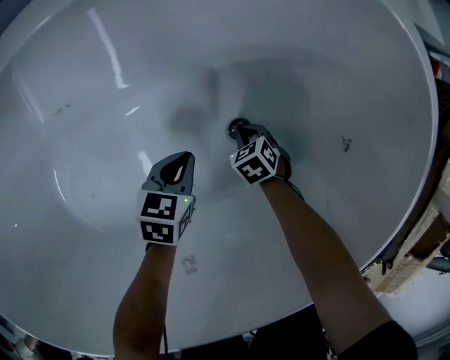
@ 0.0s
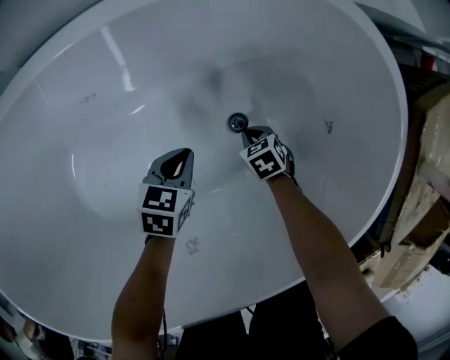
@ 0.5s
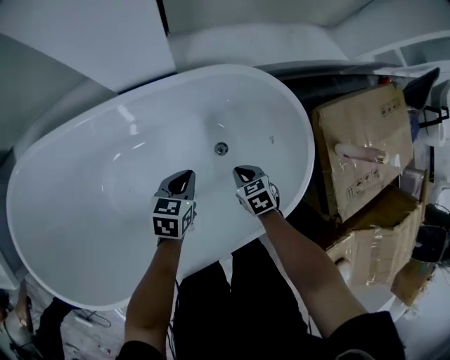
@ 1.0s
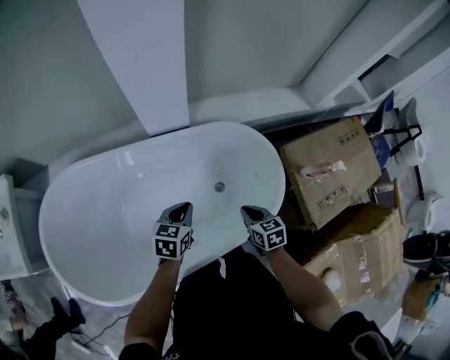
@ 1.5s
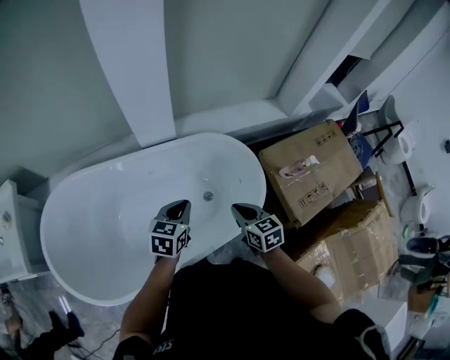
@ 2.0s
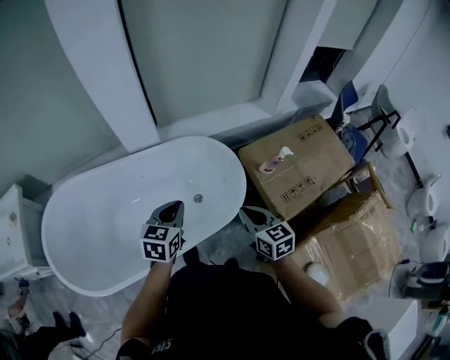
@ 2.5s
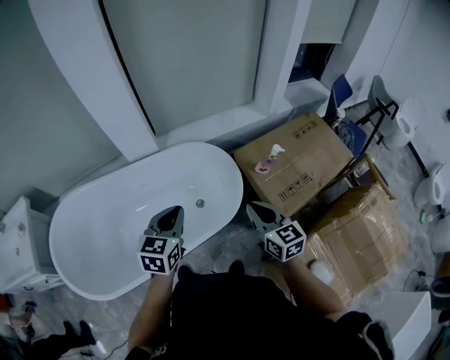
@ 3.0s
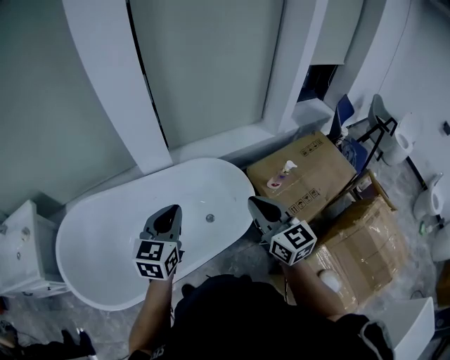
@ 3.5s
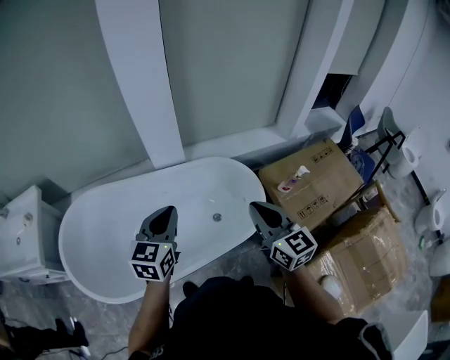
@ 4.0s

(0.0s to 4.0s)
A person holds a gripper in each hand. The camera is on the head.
0.0s - 2.0s: The grippers both shift upward by approximately 70 cm. The right gripper tilts its fingers approximately 40 degrees upward. Meanwhile the left gripper swivels about 30 degrees.
2.0s - 4.0s: Both grippers move upward and backward, approximately 25 cm. The right gripper turns by about 30 degrees; the left gripper rotates roughly 20 degrees.

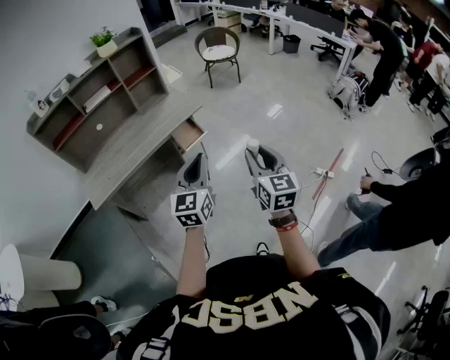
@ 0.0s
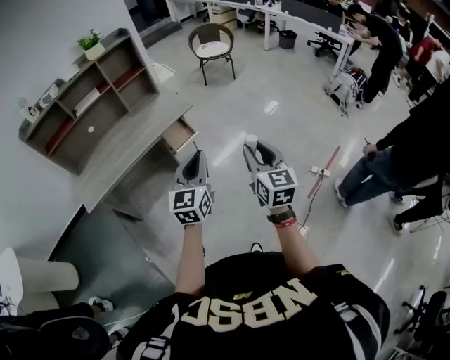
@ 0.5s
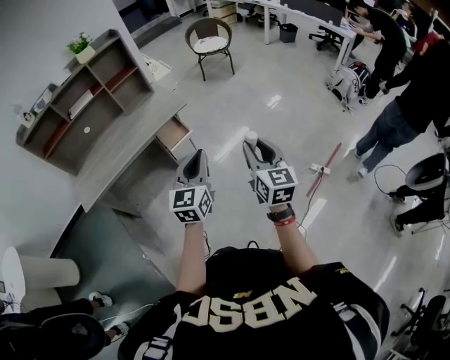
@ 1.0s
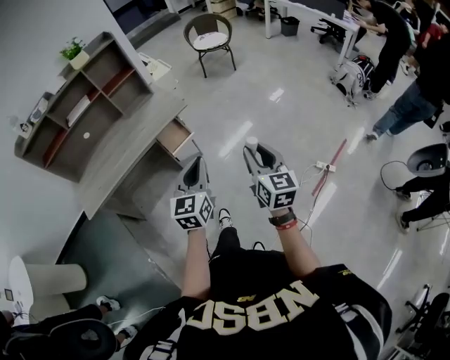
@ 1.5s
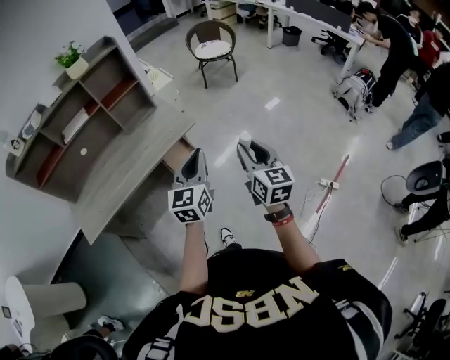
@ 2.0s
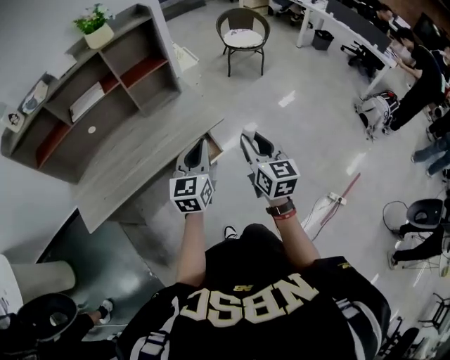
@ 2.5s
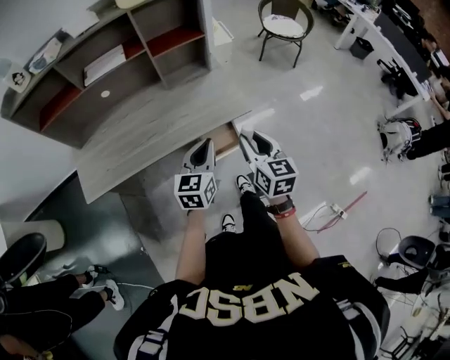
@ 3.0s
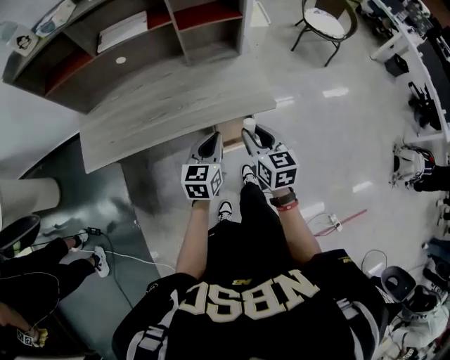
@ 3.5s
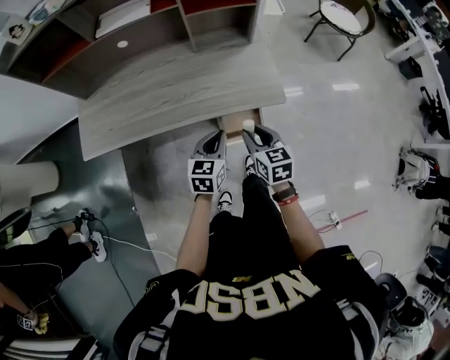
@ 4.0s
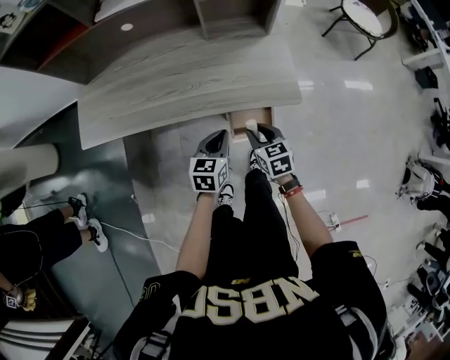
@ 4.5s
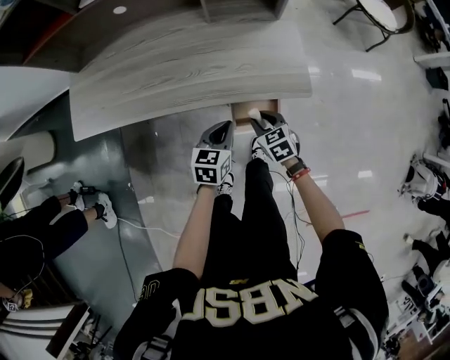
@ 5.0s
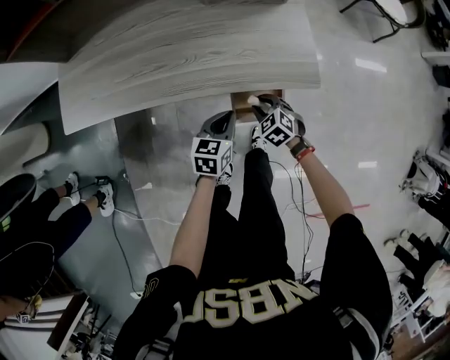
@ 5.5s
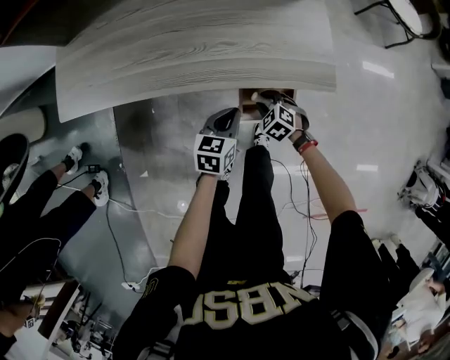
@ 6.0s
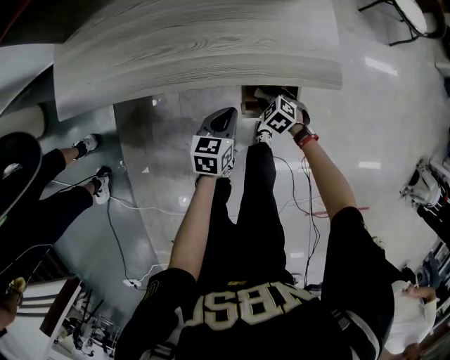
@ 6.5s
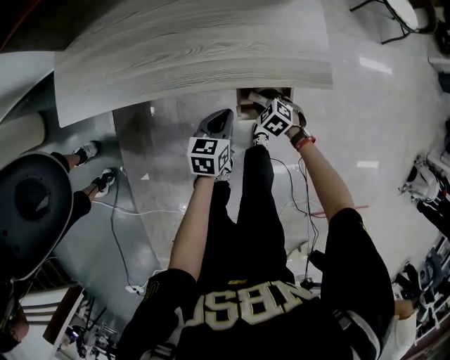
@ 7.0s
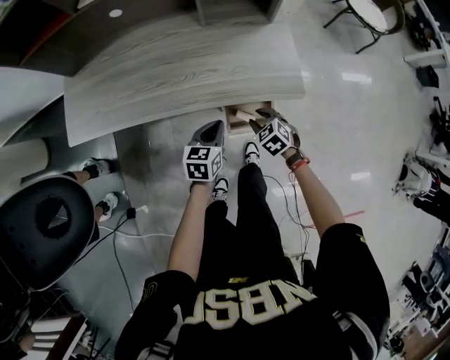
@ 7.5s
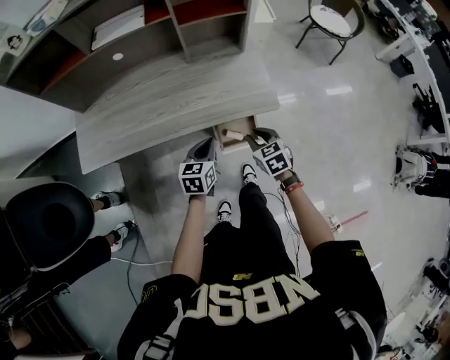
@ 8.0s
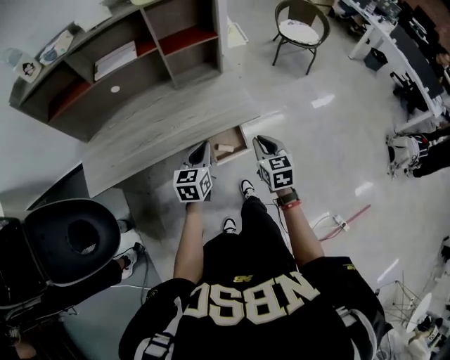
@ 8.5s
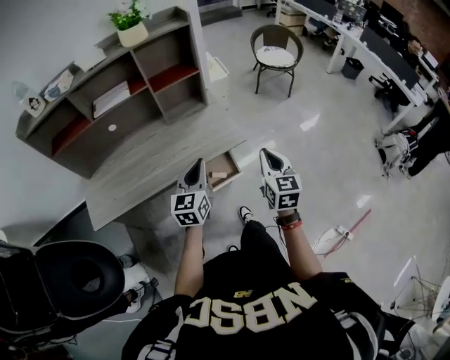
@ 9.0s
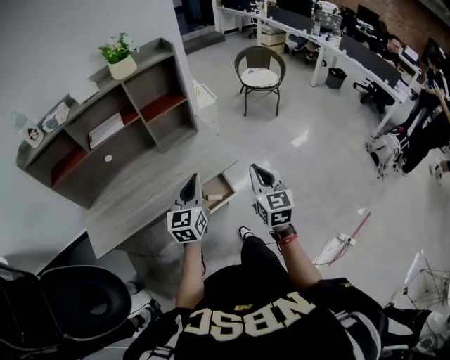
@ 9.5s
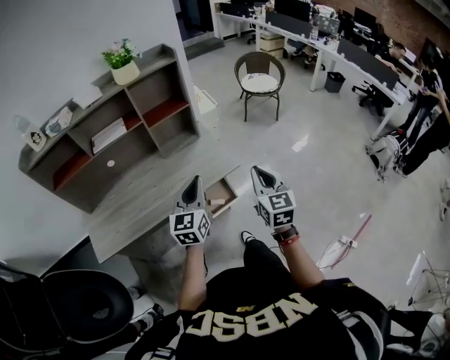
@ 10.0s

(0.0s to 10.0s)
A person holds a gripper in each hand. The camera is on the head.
0.0s - 2.0s: The two grippers go some 25 cm forward.
2.0s - 4.0s: The left gripper moves some 35 cm, and changes its angle by roughly 40 degrees. The right gripper shifts by roughly 40 cm, and turns by roughly 50 degrees.
4.0s - 6.0s: The right gripper is displaced downward by about 30 cm, and twists approximately 50 degrees counterclockwise, seen from behind; the left gripper moves downward, approximately 20 cm.
6.0s - 8.0s: The left gripper is displaced upward by some 15 cm; the right gripper shifts roughly 25 cm upward, and turns by about 40 degrees.
8.0s - 10.0s: Both grippers travel together upward, some 25 cm. The left gripper turns by some 30 degrees. Meanwhile the right gripper angles its fingers upward, by about 40 degrees, and closes.

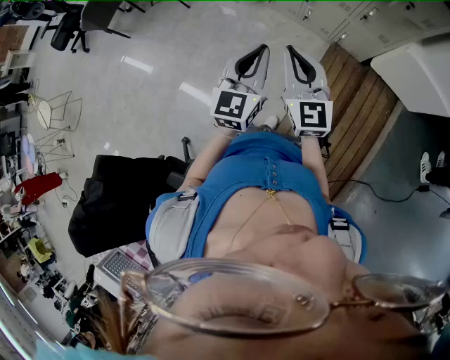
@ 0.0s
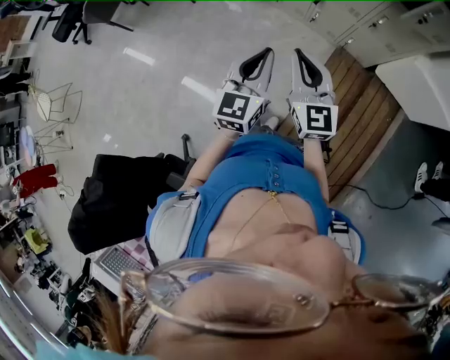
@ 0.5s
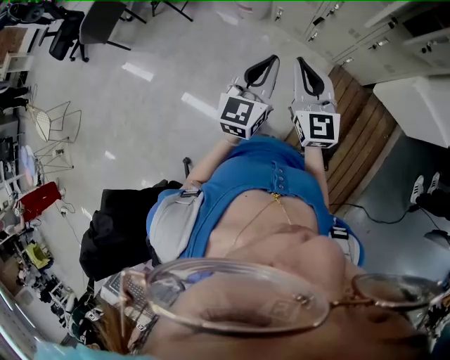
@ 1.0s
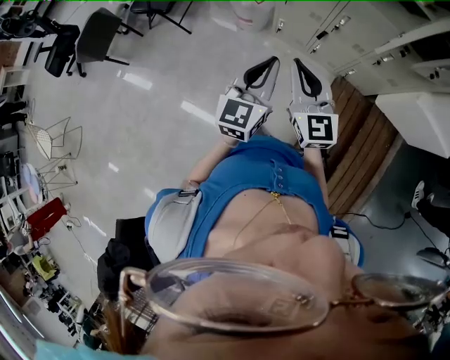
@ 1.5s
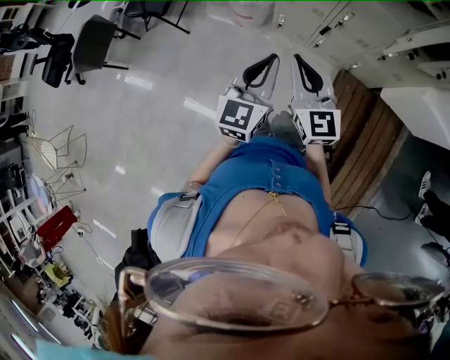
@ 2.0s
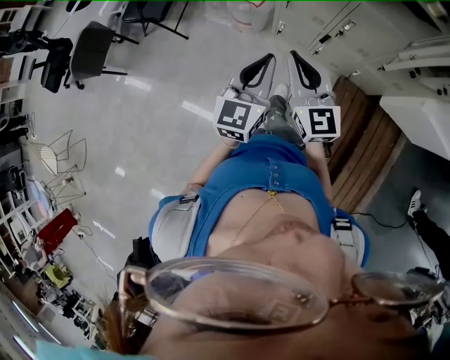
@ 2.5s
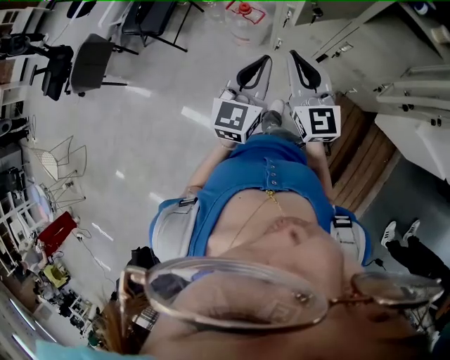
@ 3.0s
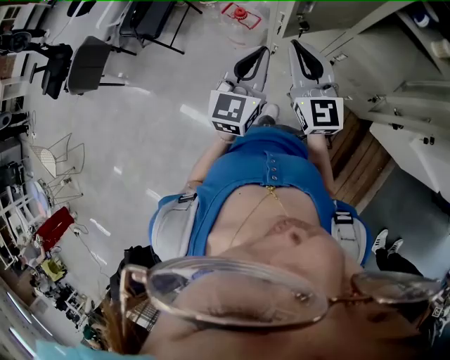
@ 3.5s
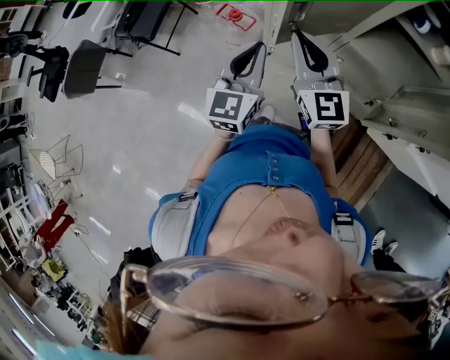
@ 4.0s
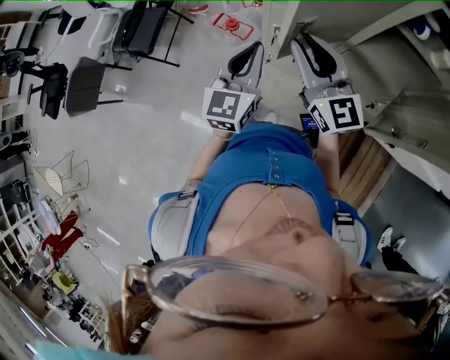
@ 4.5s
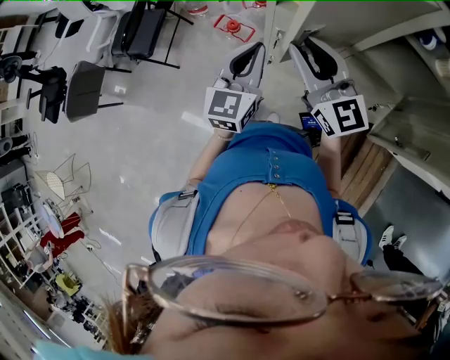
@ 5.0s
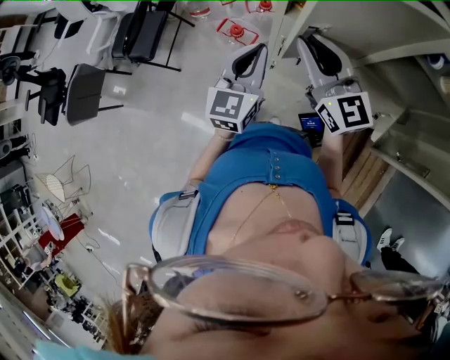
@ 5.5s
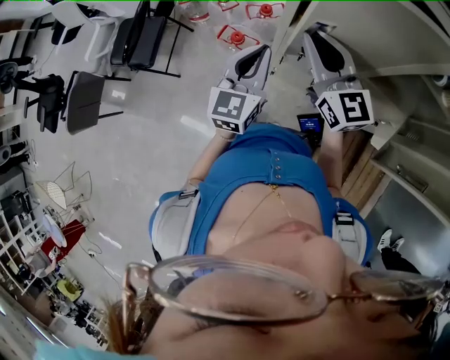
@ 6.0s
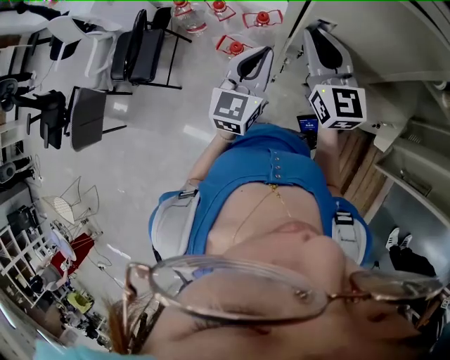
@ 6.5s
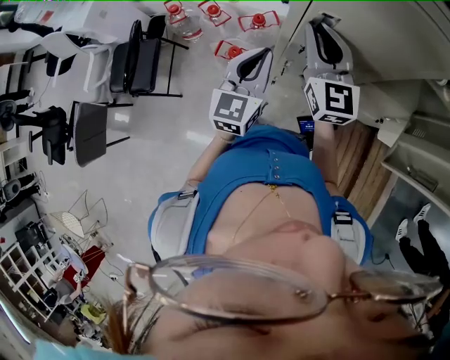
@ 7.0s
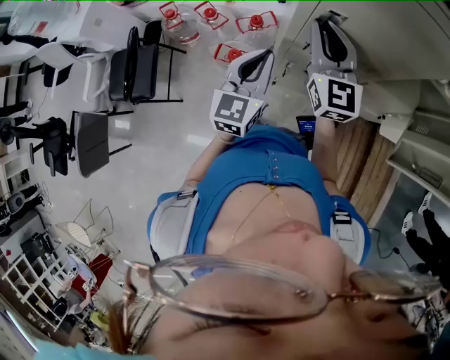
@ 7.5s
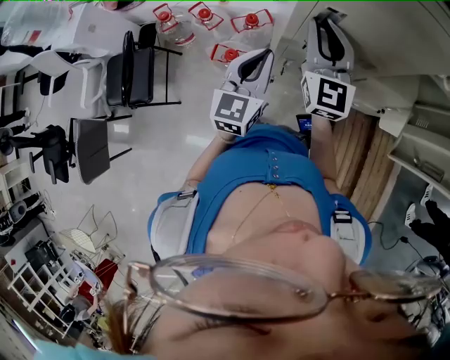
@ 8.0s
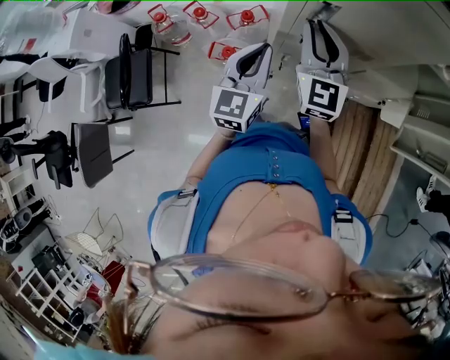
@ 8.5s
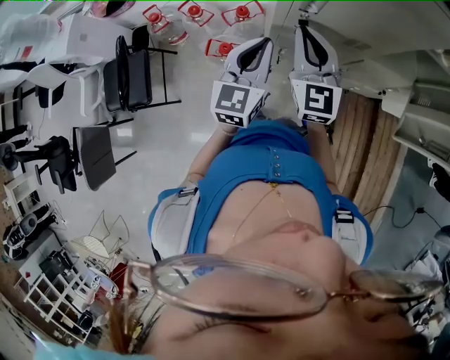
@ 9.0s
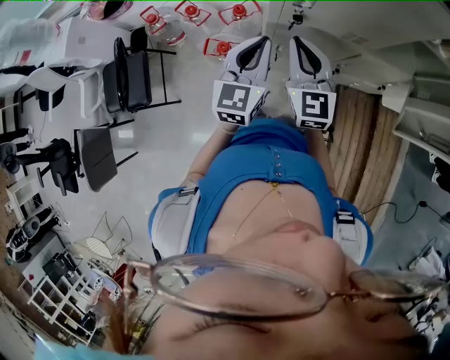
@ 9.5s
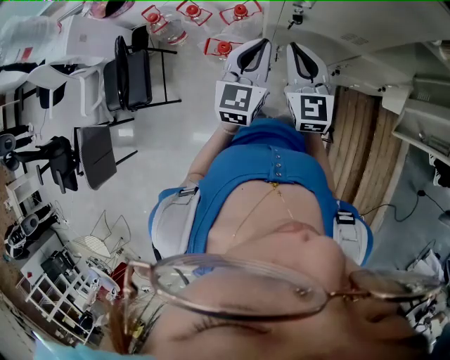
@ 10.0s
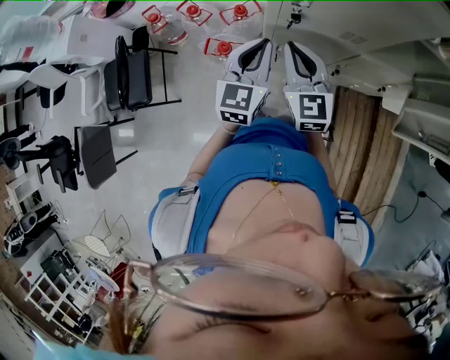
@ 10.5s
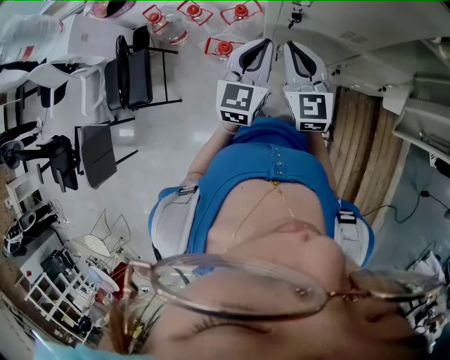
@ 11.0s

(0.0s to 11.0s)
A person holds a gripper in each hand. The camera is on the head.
0.0s - 2.0s: Both grippers move forward, some 30 cm.
2.0s - 3.5s: The two grippers go roughly 30 cm forward.
3.5s - 5.5s: The two grippers go roughly 15 cm forward.
5.5s - 7.5s: Both grippers travel together forward, approximately 10 cm. The right gripper rotates about 30 degrees.
7.5s - 9.0s: The right gripper moves approximately 5 cm.
9.0s - 11.0s: The right gripper shifts by approximately 5 cm.

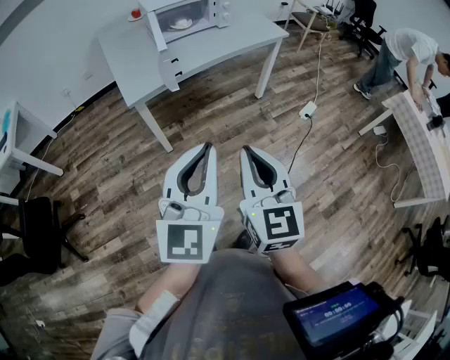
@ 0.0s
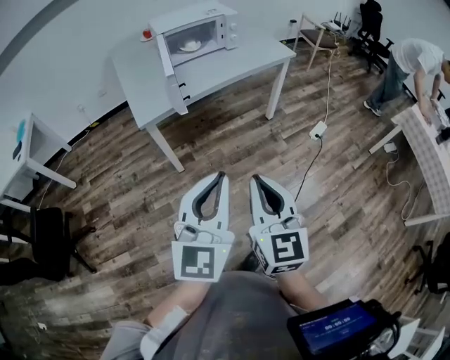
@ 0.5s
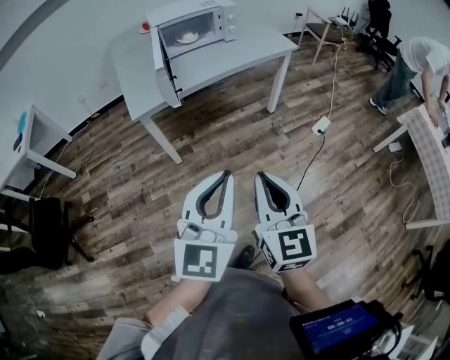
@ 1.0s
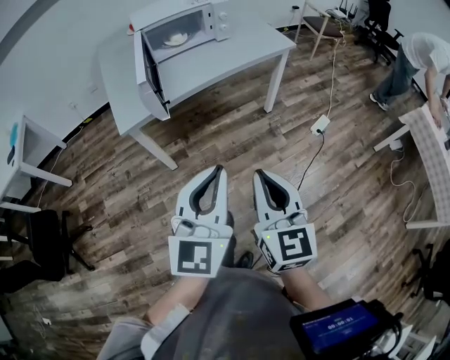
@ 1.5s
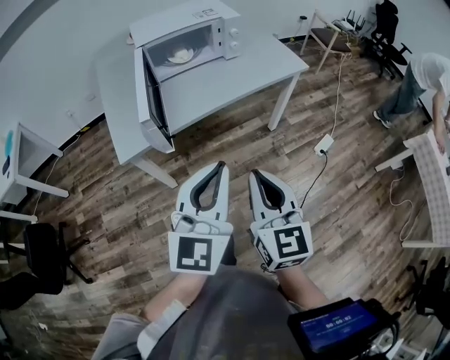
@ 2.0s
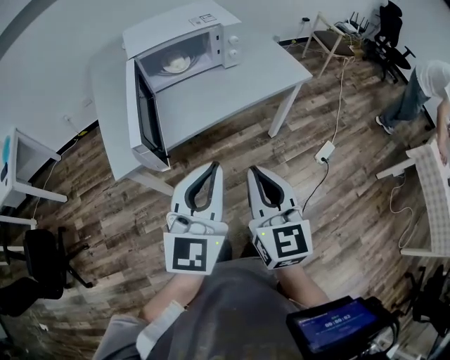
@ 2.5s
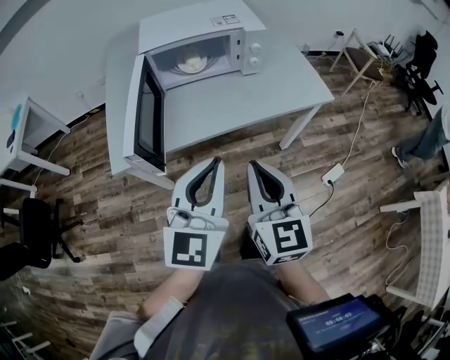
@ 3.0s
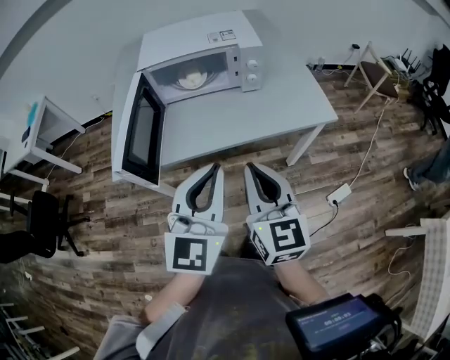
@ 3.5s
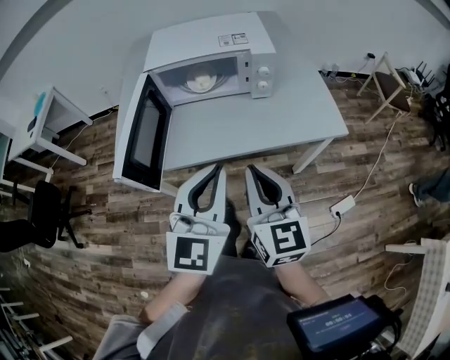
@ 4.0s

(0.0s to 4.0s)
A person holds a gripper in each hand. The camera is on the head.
0.0s - 2.0s: The two grippers go roughly 25 cm forward.
2.0s - 4.0s: The right gripper shifts approximately 25 cm forward, and rotates approximately 20 degrees. Meanwhile the left gripper goes about 25 cm forward and to the right, and rotates some 20 degrees.
